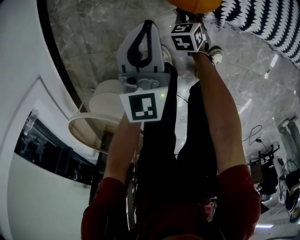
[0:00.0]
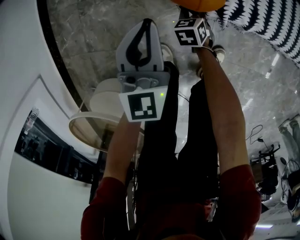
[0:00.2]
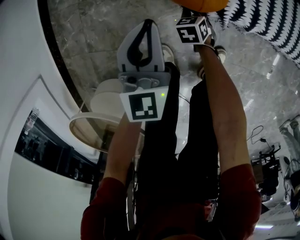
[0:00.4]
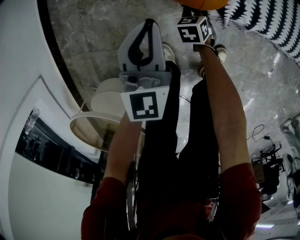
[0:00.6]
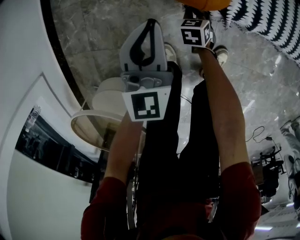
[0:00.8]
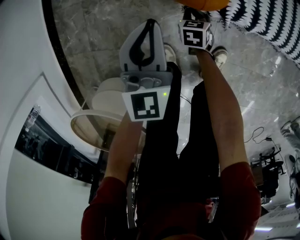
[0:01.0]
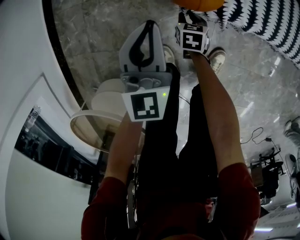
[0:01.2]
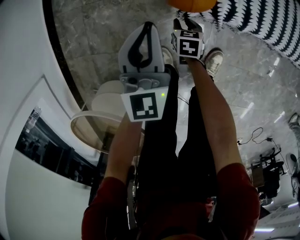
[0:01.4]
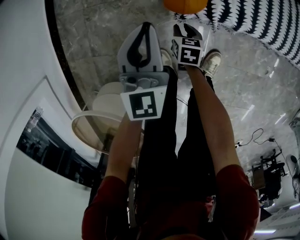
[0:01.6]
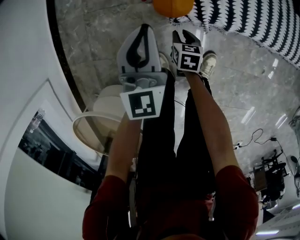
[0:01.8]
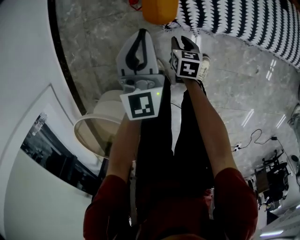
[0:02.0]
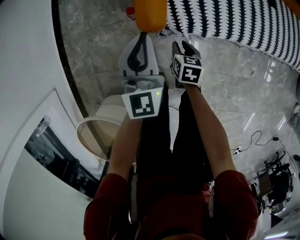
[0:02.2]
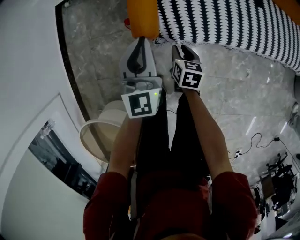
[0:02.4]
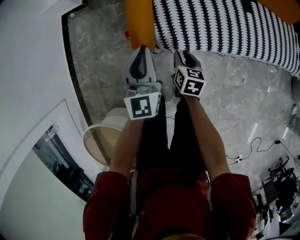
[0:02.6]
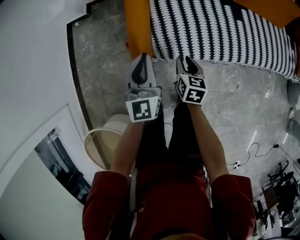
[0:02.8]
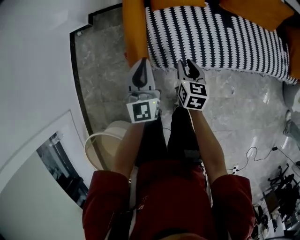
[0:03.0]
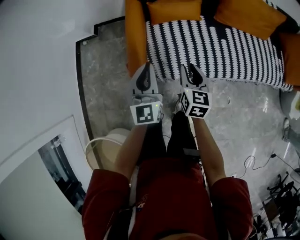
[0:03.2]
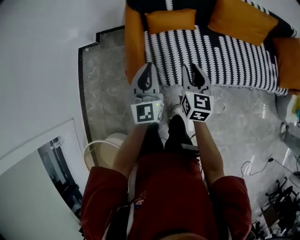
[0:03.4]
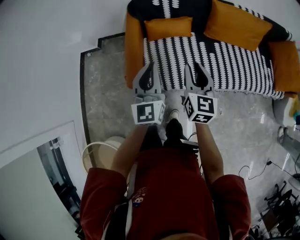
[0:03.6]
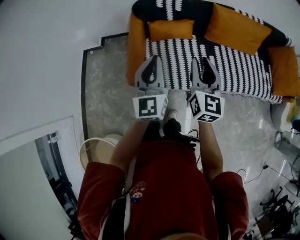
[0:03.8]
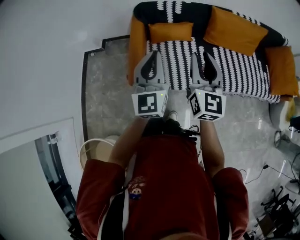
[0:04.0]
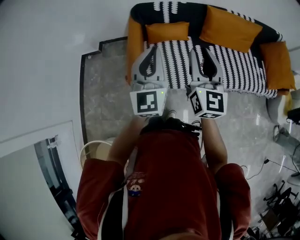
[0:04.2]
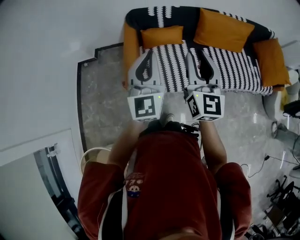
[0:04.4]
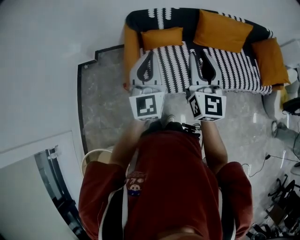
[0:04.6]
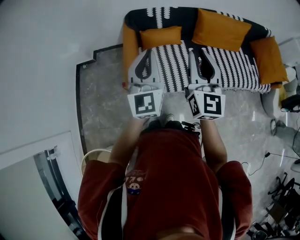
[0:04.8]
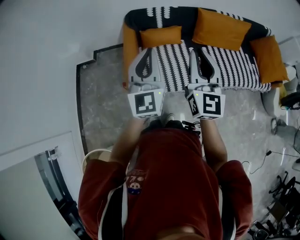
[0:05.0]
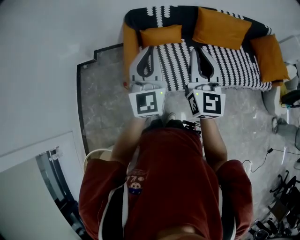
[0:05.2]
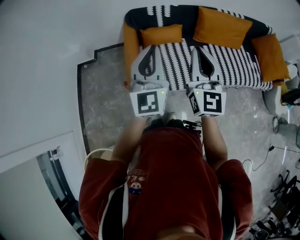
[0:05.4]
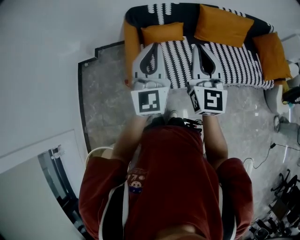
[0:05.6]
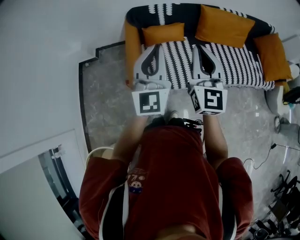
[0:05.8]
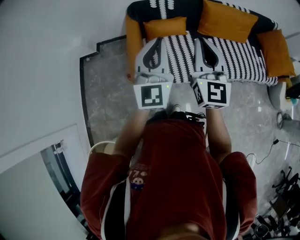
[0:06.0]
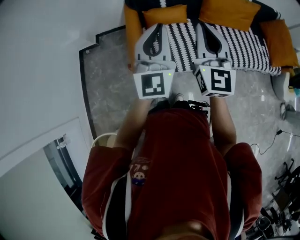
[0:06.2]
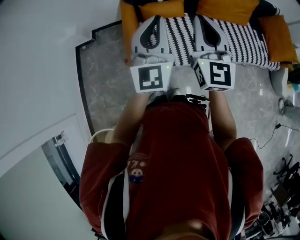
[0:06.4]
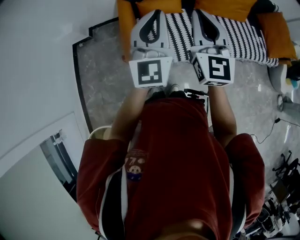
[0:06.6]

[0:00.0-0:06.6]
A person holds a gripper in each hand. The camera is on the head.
0:00.0 to 0:01.6: The right gripper travels backward by about 5 cm, swivels some 30 degrees, and opens up.
0:01.6 to 0:03.2: The two grippers go about 50 cm upward and to the right. The right gripper turns by approximately 30 degrees.
0:03.2 to 0:05.0: Both grippers move upward, about 30 cm. The right gripper tips its fingers upward by about 40 degrees.
0:05.0 to 0:06.6: There are only small adjustments of the grippers.

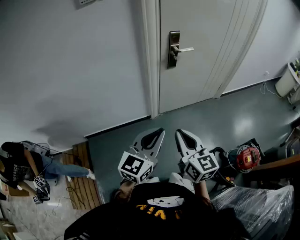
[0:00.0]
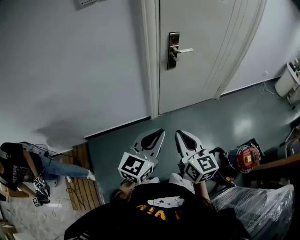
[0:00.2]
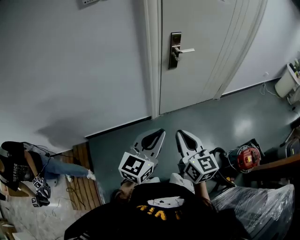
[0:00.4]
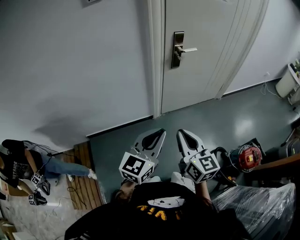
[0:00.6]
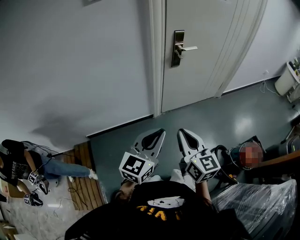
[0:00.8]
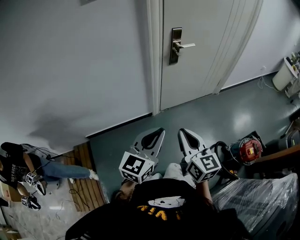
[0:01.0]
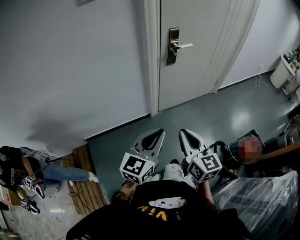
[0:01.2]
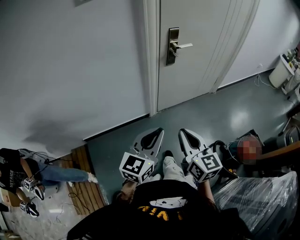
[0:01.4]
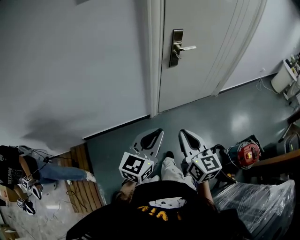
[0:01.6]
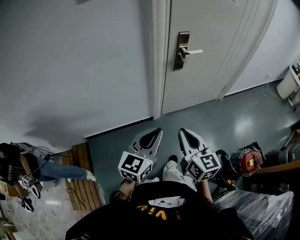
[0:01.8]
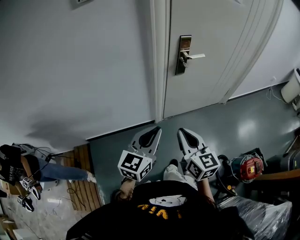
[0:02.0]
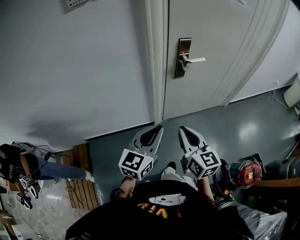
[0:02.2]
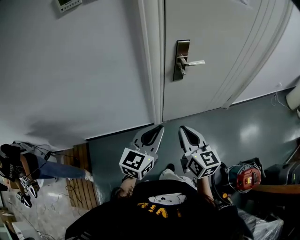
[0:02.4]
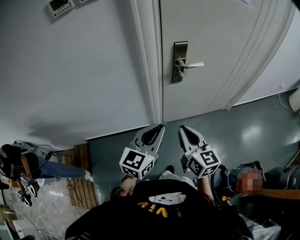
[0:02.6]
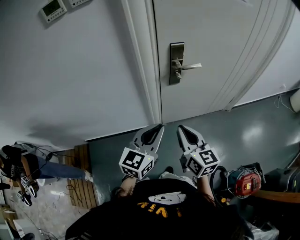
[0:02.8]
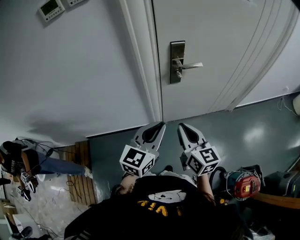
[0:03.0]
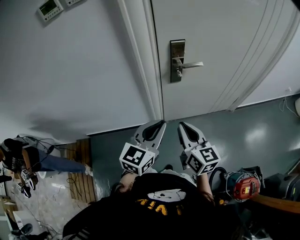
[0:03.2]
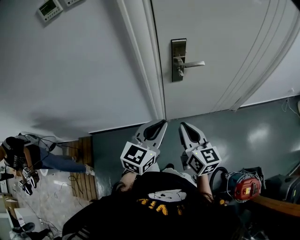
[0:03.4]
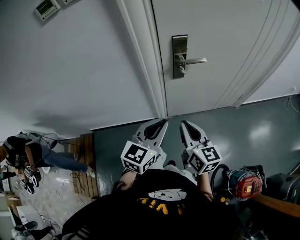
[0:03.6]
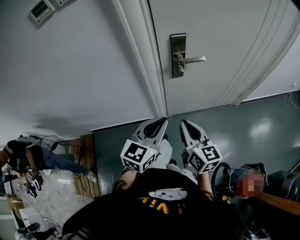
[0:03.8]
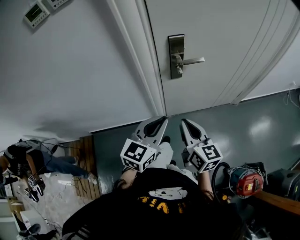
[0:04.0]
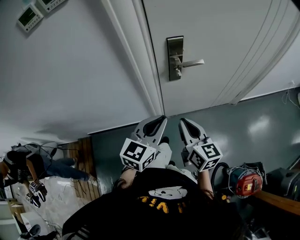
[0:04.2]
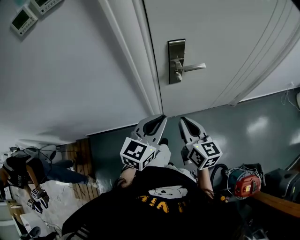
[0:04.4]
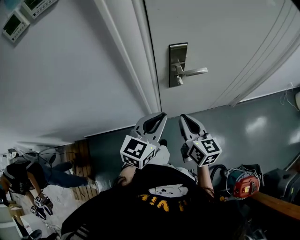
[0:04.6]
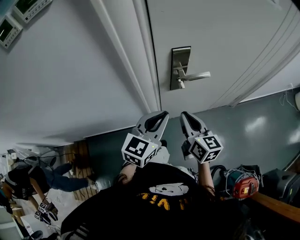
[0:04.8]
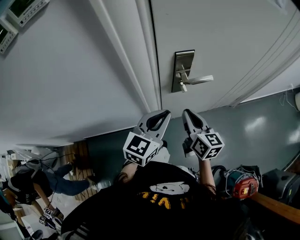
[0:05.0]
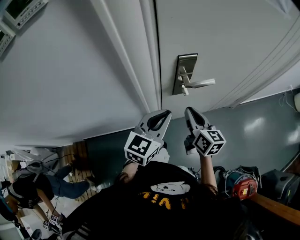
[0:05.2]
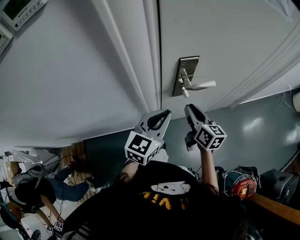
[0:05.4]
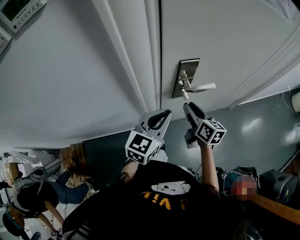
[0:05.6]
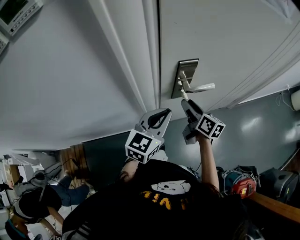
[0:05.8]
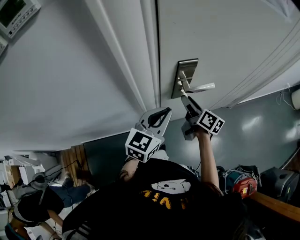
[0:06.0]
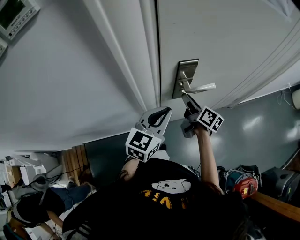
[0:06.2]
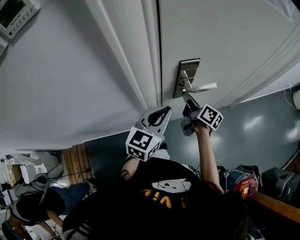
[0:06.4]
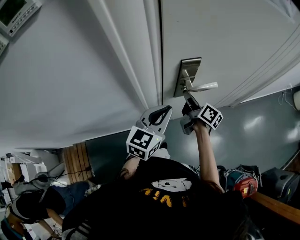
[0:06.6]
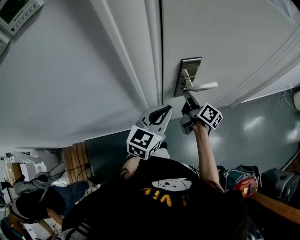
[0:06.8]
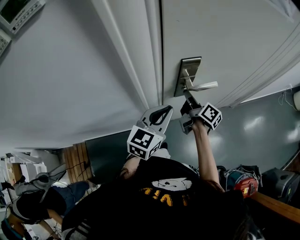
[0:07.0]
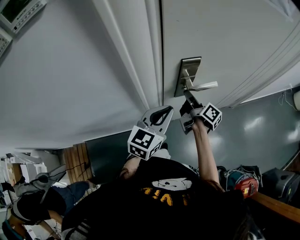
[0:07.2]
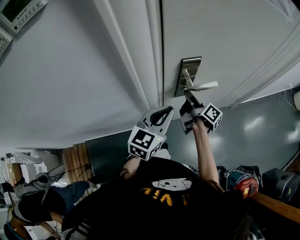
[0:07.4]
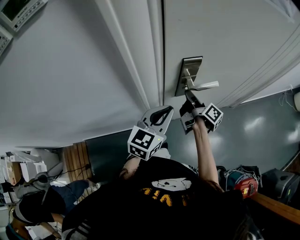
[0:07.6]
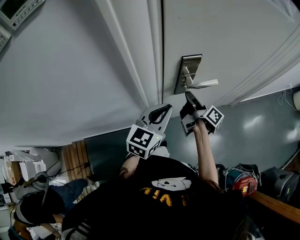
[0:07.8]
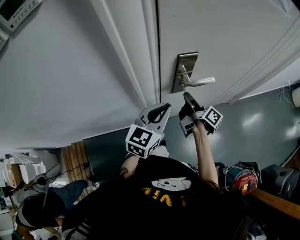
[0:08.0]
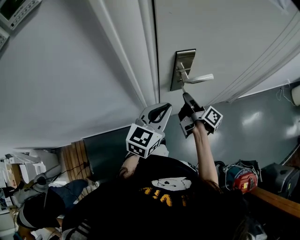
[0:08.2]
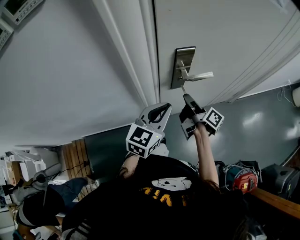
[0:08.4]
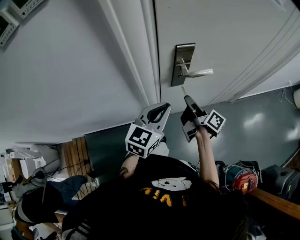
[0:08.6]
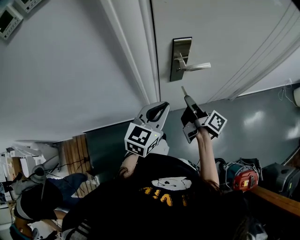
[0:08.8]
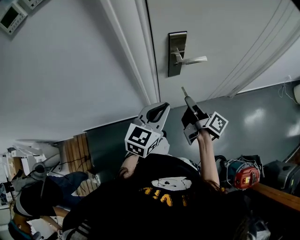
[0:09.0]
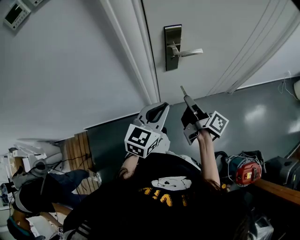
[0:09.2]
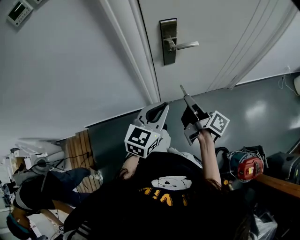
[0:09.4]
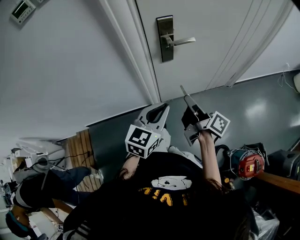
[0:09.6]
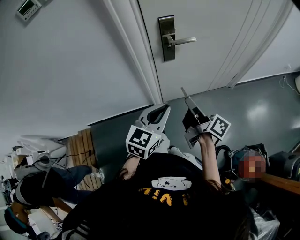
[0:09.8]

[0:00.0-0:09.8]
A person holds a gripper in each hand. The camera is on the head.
0:00.0 to 0:01.4: The left gripper shifts by roughly 5 cm.
0:01.4 to 0:02.8: The left gripper shifts about 25 cm forward and to the right. Meanwhile the right gripper is displaced forward by about 25 cm.
0:02.8 to 0:04.2: The grippers both shift forward by approximately 5 cm.
0:04.2 to 0:05.6: The grippers both shift forward by roughly 20 cm. The right gripper opens up.
0:05.6 to 0:07.0: The right gripper is displaced forward by roughly 5 cm, and swivels some 40 degrees.
0:07.0 to 0:08.4: The grippers make only small movements.
0:08.4 to 0:09.8: Both grippers move backward, approximately 25 cm.

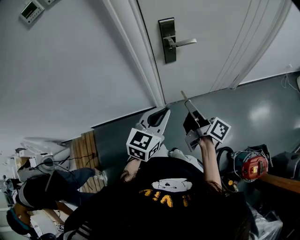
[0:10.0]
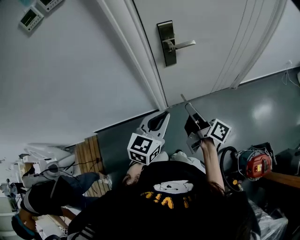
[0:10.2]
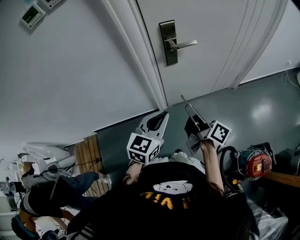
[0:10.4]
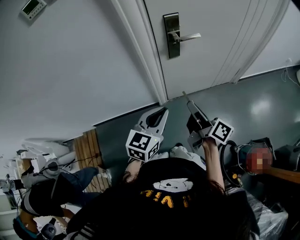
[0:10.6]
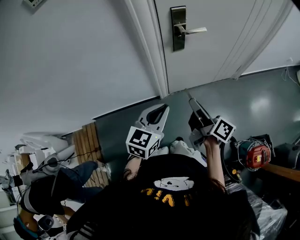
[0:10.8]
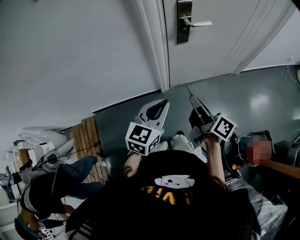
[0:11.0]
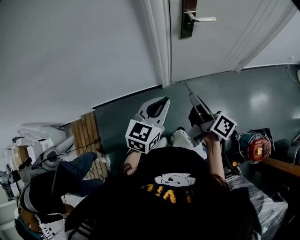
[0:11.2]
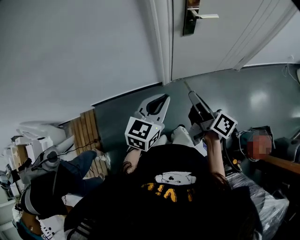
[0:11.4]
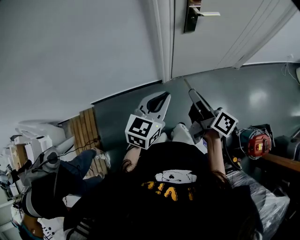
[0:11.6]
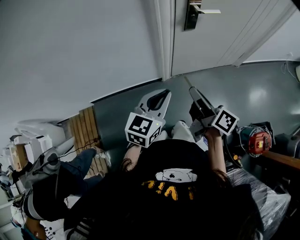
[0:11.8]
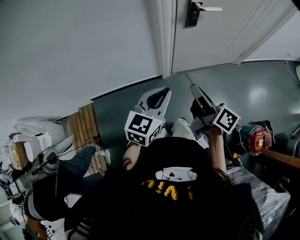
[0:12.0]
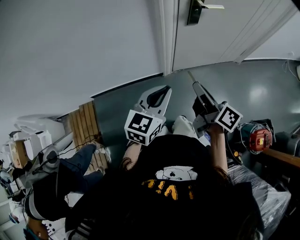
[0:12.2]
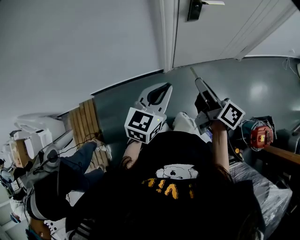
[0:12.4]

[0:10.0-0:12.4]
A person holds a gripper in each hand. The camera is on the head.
0:10.0 to 0:11.2: Both grippers move to the left and backward, approximately 15 cm.
0:11.2 to 0:12.4: There are only small adjustments of the grippers.

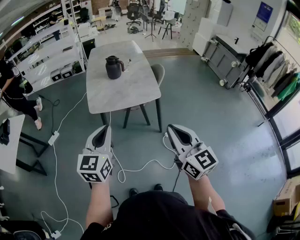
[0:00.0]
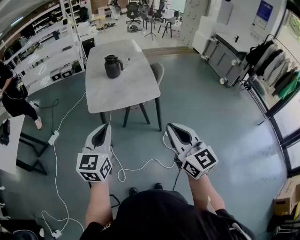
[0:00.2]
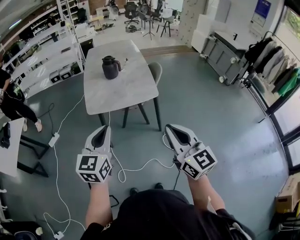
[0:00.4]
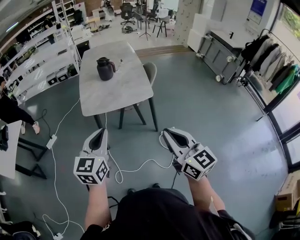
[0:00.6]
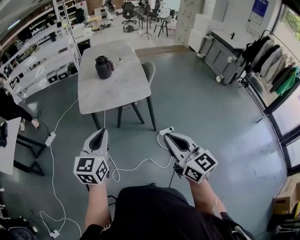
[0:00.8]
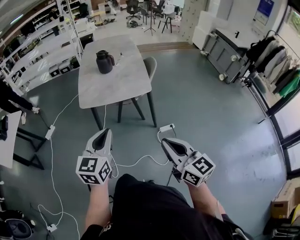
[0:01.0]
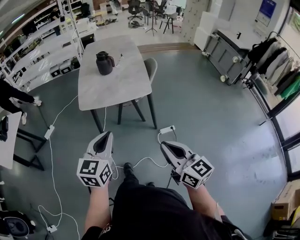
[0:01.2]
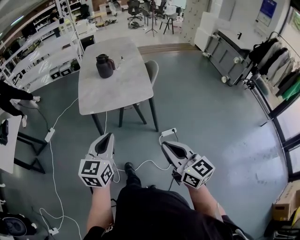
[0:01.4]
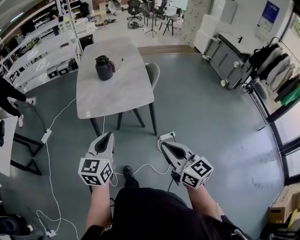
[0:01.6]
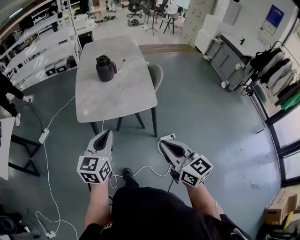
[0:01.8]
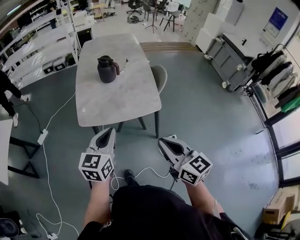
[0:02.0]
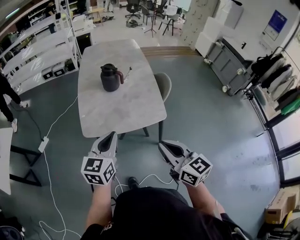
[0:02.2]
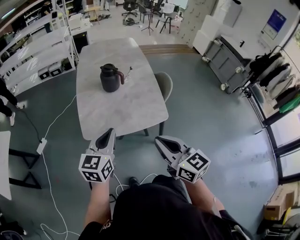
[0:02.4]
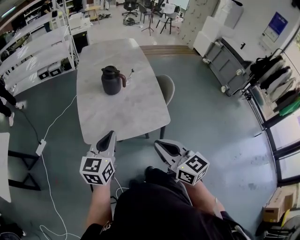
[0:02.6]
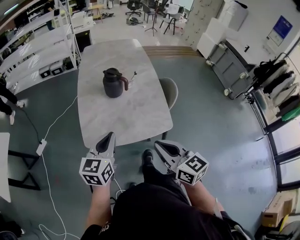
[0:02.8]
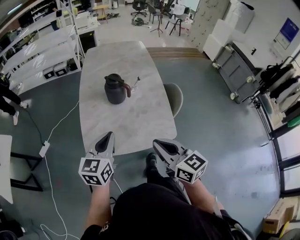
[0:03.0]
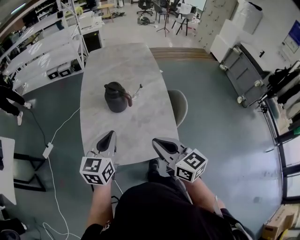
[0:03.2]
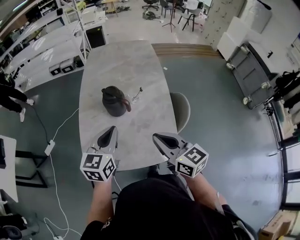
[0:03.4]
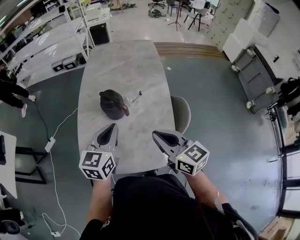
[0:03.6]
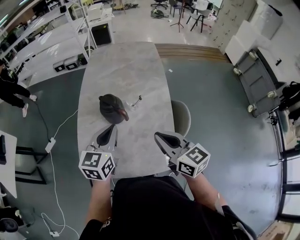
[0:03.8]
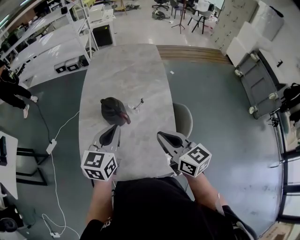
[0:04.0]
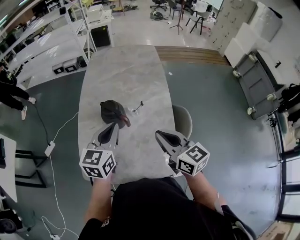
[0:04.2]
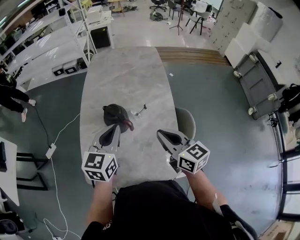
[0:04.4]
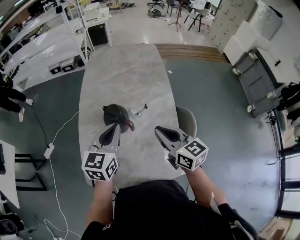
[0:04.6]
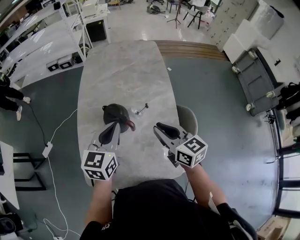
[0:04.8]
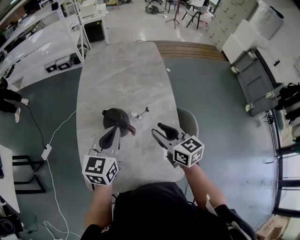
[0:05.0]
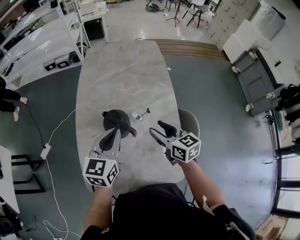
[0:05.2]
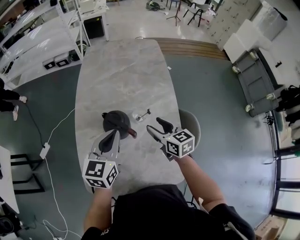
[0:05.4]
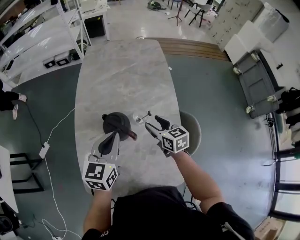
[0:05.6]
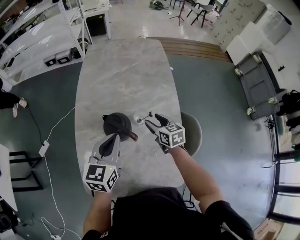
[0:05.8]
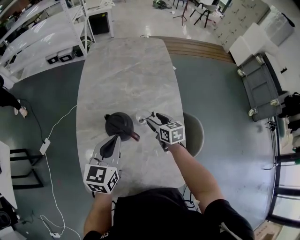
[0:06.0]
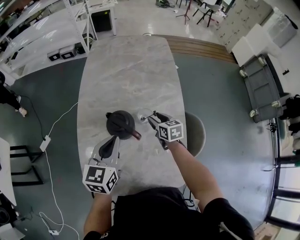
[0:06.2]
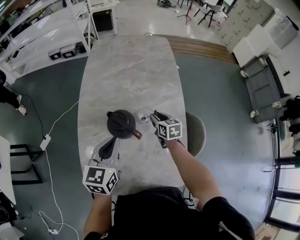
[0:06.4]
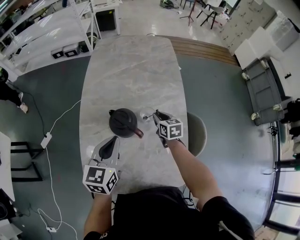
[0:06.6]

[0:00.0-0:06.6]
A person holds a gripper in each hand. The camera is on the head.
0:00.0 to 0:01.6: The left gripper is displaced to the right, downward and forward by approximately 15 cm. Meanwhile the right gripper shifts some 10 cm downward and to the right.
0:01.6 to 0:03.2: Both grippers move forward, about 40 cm.
0:03.2 to 0:05.0: The two grippers go roughly 25 cm forward. The right gripper opens its fingers.
0:05.0 to 0:06.6: The right gripper goes some 25 cm downward and forward, swivels roughly 20 degrees, and opens and closes again, while the left gripper shifts by some 5 cm.
